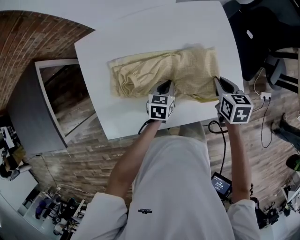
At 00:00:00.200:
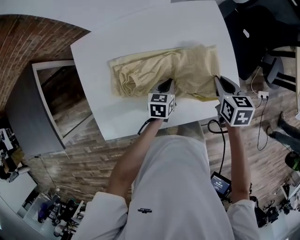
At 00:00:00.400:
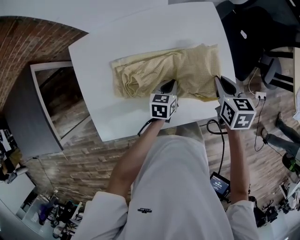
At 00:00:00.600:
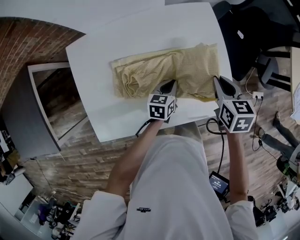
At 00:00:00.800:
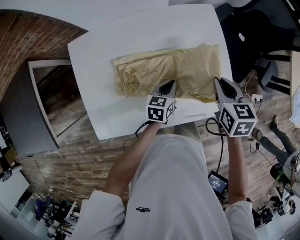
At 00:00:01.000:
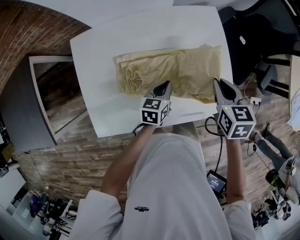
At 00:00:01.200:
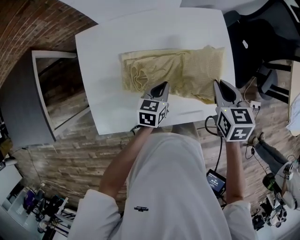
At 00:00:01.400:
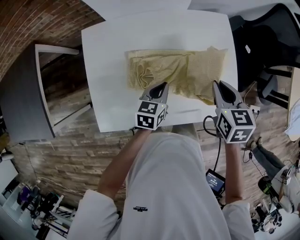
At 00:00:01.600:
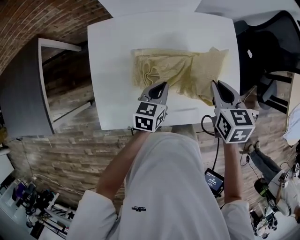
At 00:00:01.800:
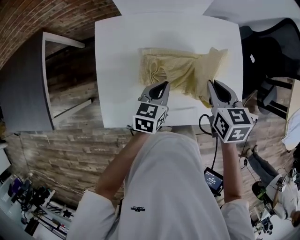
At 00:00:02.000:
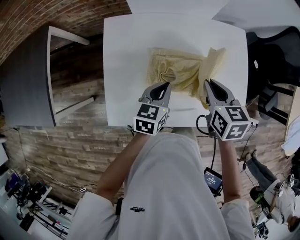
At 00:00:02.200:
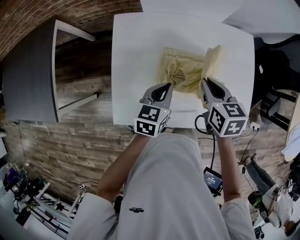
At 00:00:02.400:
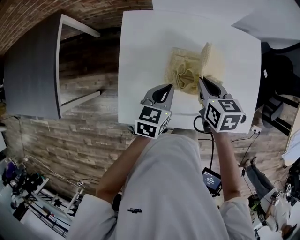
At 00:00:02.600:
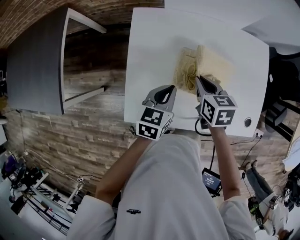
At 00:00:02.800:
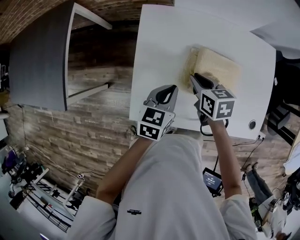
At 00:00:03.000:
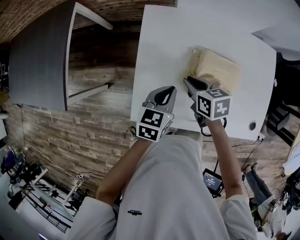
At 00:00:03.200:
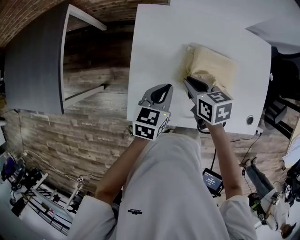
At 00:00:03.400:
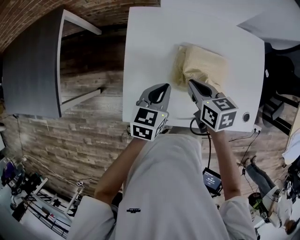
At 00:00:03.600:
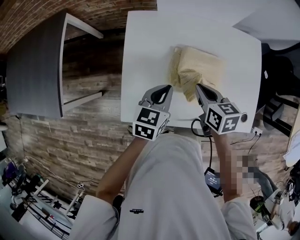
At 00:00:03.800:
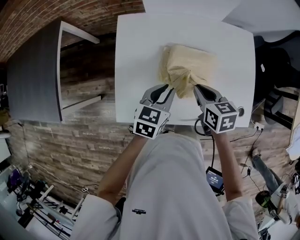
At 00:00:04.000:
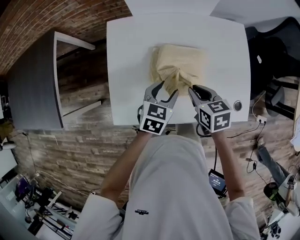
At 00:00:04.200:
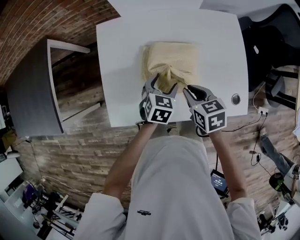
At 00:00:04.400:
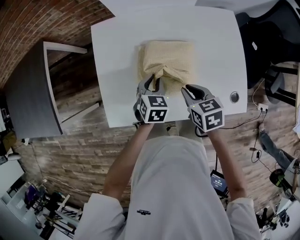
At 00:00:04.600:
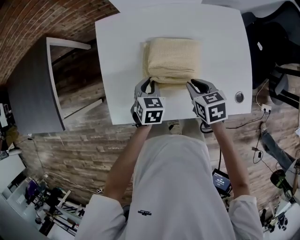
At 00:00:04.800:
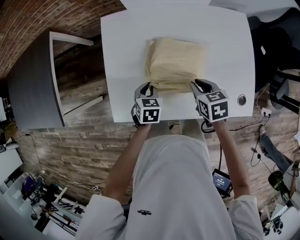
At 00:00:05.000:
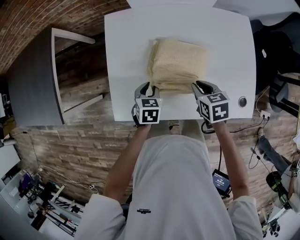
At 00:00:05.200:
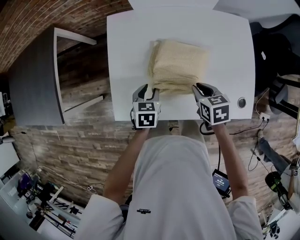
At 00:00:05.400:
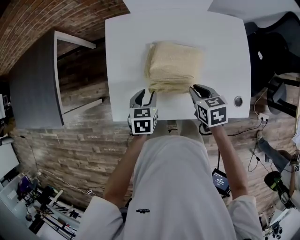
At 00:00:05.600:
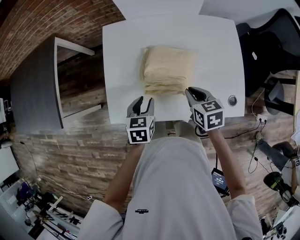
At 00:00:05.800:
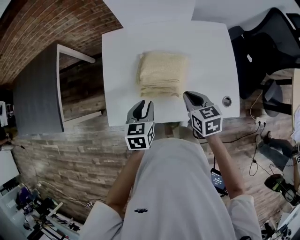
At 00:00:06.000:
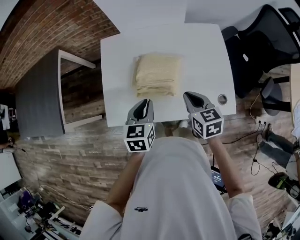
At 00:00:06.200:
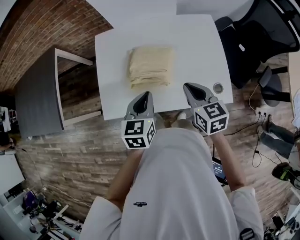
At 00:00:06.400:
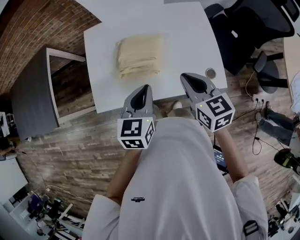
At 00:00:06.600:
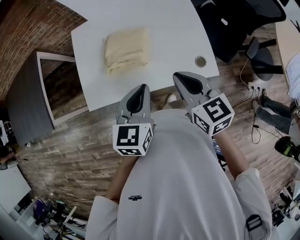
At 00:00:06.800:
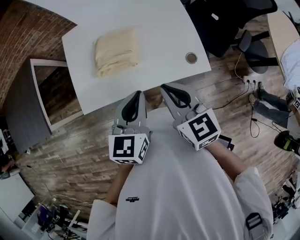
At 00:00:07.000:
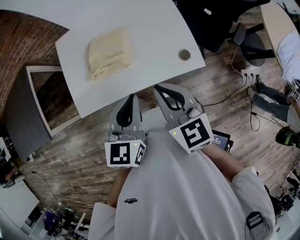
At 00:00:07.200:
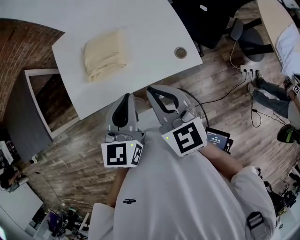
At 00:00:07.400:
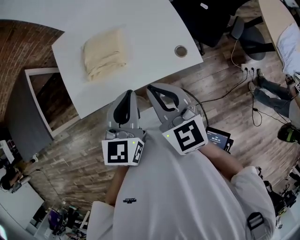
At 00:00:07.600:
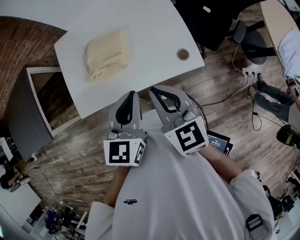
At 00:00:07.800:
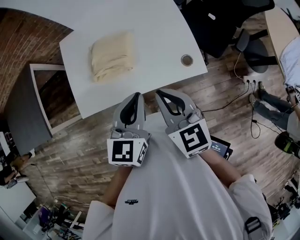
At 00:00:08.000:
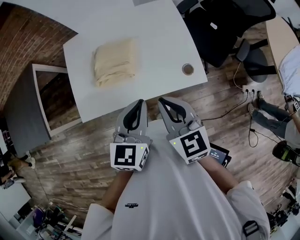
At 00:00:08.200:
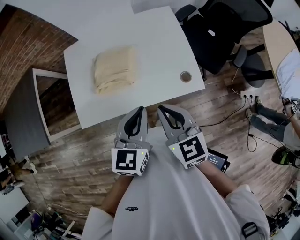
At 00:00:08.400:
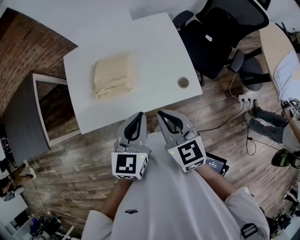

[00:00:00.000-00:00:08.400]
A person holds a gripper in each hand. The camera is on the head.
00:00:00.000 to 00:00:01.400: The left gripper is displaced upward by roughly 10 cm, and reaches about 5 cm to the right, then returns, while the right gripper goes approximately 10 cm upward and to the left.
00:00:01.400 to 00:00:02.800: The right gripper heads to the left, covering approximately 30 cm, and changes its angle by some 30 degrees. Meanwhile the left gripper shifts about 20 cm to the left.
00:00:02.800 to 00:00:04.200: The right gripper moves to the right and backward, roughly 15 cm. The left gripper goes about 15 cm to the right, swivels roughly 20 degrees, and opens its fingers.
00:00:04.200 to 00:00:05.600: The left gripper shifts some 10 cm to the left and backward, swivels about 20 degrees, and closes.
00:00:05.600 to 00:00:07.000: The left gripper is displaced upward, to the right and backward by about 30 cm, turns by approximately 30 degrees, and closes its fingers. Meanwhile the right gripper heads upward, backward and to the right, covering roughly 25 cm, and turns by approximately 30 degrees.
00:00:07.000 to 00:00:08.400: The grippers stay close to where they were, moving slightly.

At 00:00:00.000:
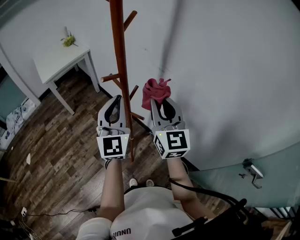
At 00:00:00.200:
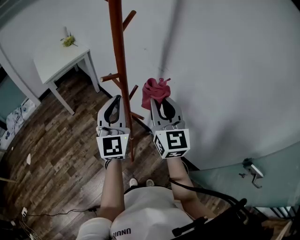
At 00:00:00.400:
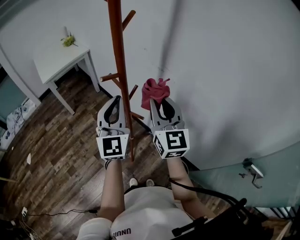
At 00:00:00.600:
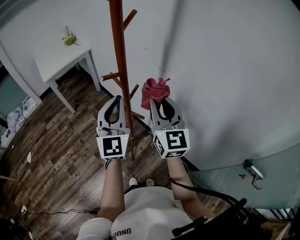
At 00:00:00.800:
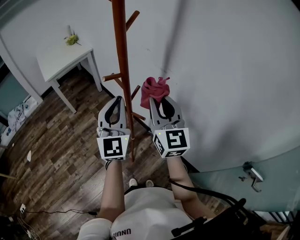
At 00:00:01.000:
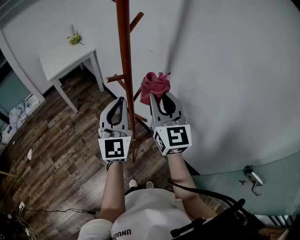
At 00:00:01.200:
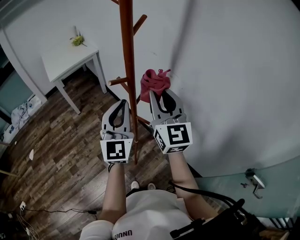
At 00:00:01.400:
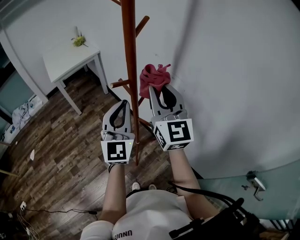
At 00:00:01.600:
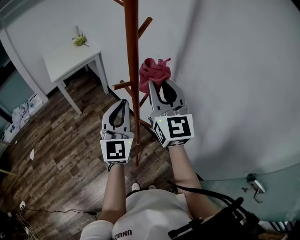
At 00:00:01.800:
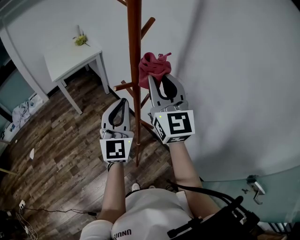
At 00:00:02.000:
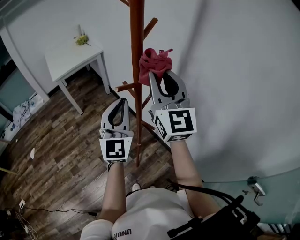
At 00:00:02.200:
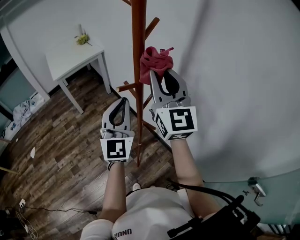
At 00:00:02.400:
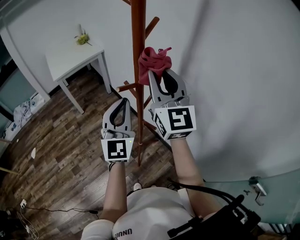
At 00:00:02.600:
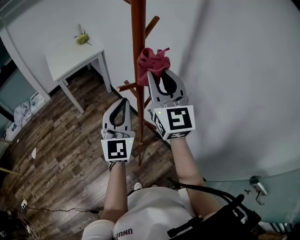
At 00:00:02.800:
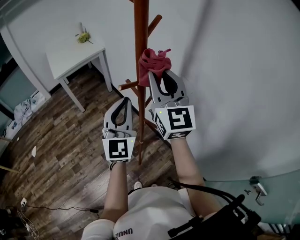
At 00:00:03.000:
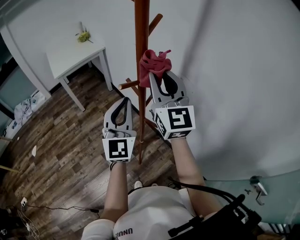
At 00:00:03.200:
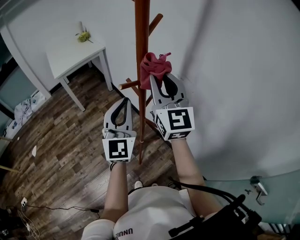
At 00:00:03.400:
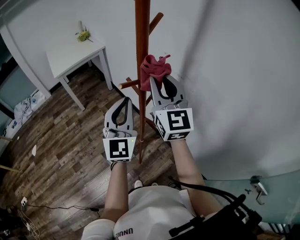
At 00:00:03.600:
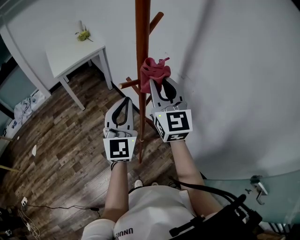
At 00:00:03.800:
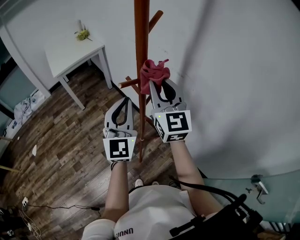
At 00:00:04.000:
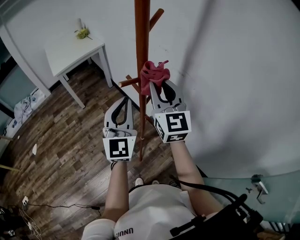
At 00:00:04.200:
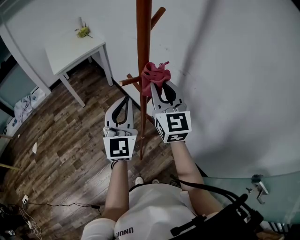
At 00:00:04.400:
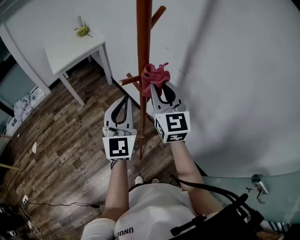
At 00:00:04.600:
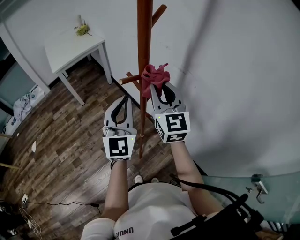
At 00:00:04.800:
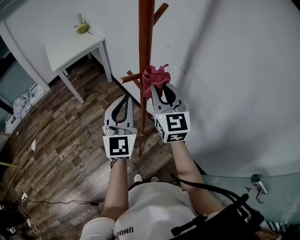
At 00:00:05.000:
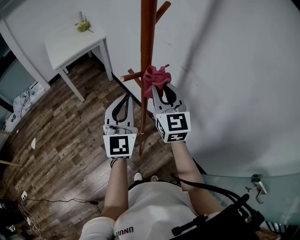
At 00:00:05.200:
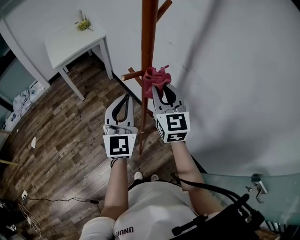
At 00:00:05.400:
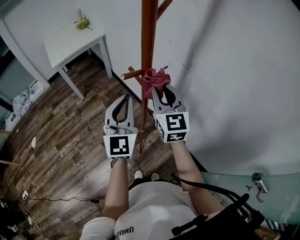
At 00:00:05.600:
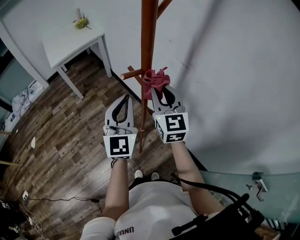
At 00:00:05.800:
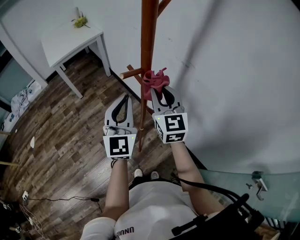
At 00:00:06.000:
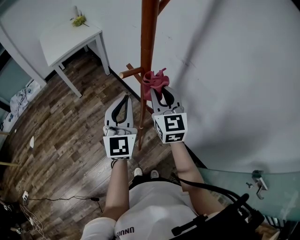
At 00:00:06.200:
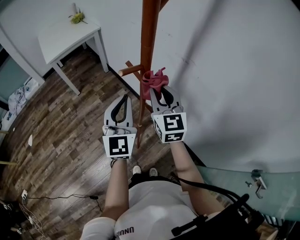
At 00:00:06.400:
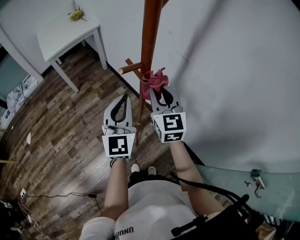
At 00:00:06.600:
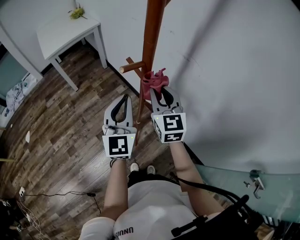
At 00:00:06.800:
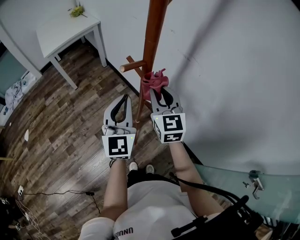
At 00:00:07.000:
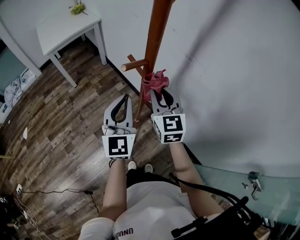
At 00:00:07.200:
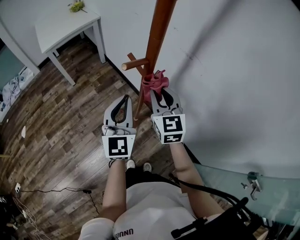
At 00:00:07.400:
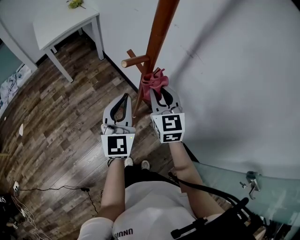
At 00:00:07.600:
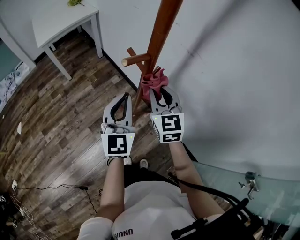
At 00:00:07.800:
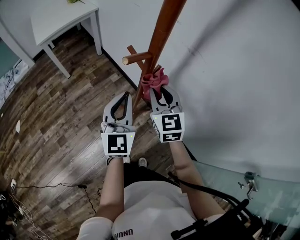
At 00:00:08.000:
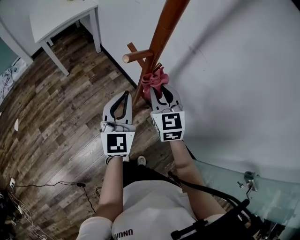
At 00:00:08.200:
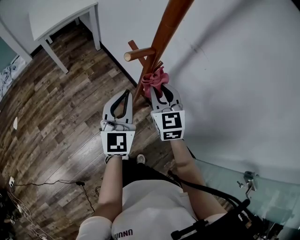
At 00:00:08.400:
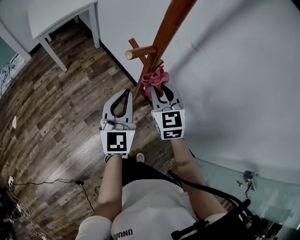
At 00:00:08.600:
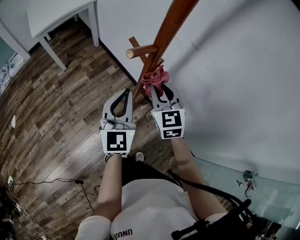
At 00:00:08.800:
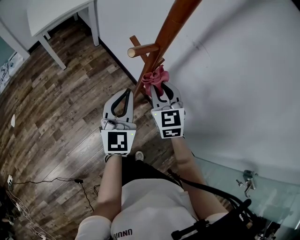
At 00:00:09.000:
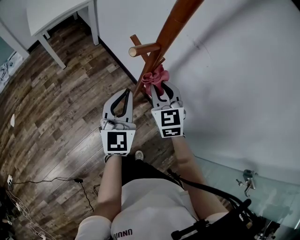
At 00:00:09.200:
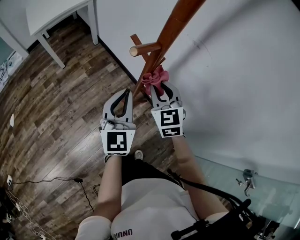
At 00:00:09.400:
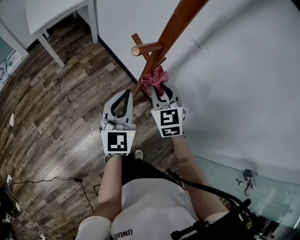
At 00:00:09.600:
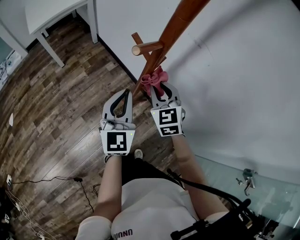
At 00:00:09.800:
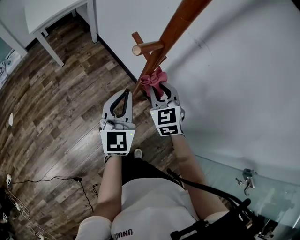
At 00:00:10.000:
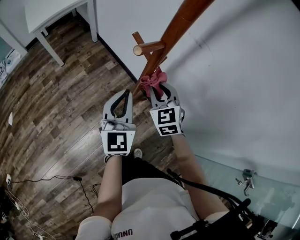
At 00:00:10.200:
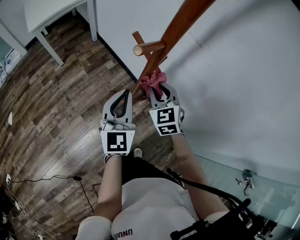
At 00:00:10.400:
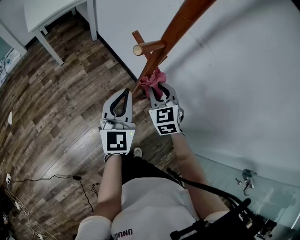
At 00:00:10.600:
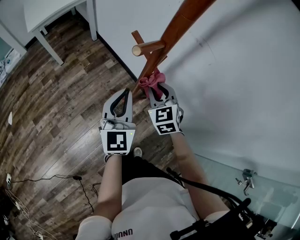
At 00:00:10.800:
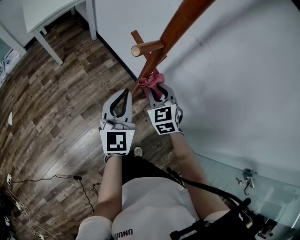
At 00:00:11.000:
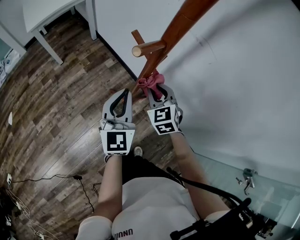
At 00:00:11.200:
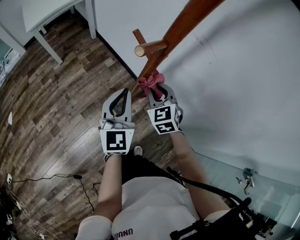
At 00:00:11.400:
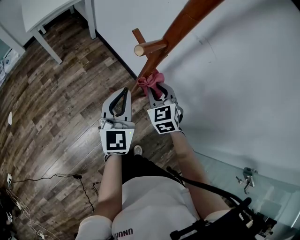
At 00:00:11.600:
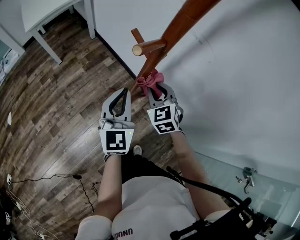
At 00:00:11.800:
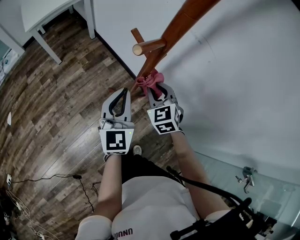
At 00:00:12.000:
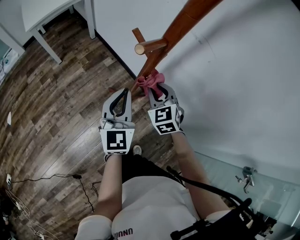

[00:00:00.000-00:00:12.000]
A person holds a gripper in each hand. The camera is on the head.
00:00:00.000 to 00:00:01.600: The right gripper moves upward and forward, about 10 cm.
00:00:01.600 to 00:00:03.000: The grippers stay close to where they were, moving slightly.
00:00:03.000 to 00:00:04.400: The right gripper shifts about 10 cm downward.
00:00:04.400 to 00:00:06.000: The right gripper shifts about 5 cm downward.
00:00:06.000 to 00:00:07.600: Both grippers move downward, roughly 5 cm.
00:00:07.600 to 00:00:09.000: The grippers move only a little.
00:00:09.000 to 00:00:10.400: The right gripper travels downward by some 5 cm.
00:00:10.400 to 00:00:12.000: The grippers move only a little.

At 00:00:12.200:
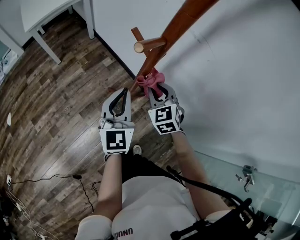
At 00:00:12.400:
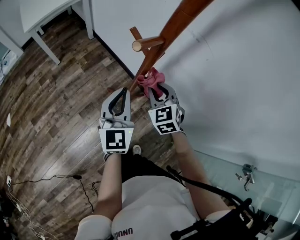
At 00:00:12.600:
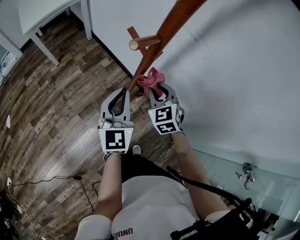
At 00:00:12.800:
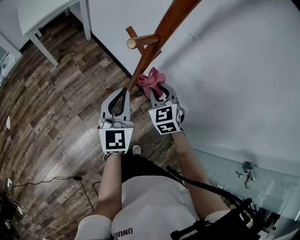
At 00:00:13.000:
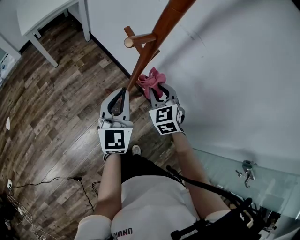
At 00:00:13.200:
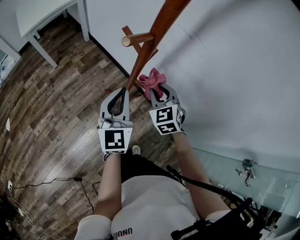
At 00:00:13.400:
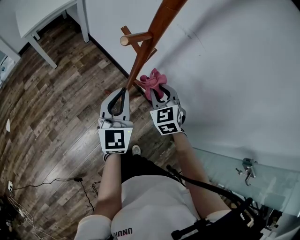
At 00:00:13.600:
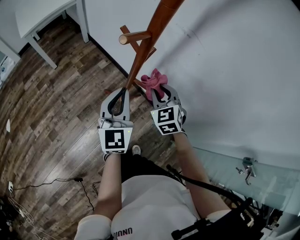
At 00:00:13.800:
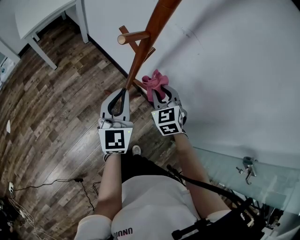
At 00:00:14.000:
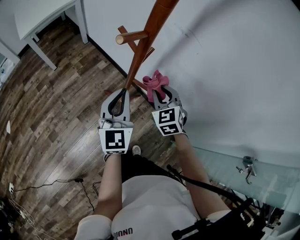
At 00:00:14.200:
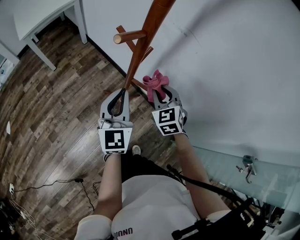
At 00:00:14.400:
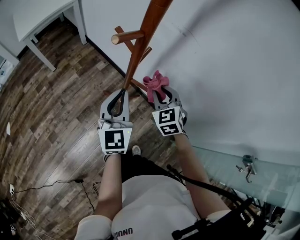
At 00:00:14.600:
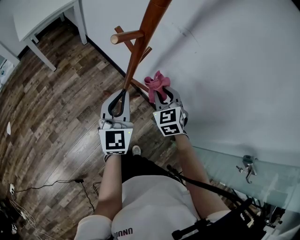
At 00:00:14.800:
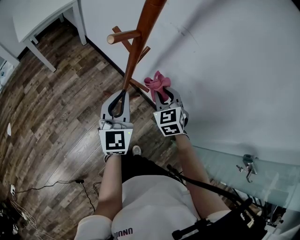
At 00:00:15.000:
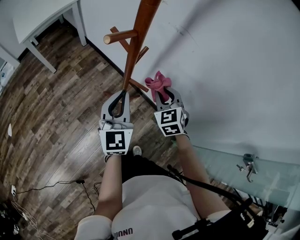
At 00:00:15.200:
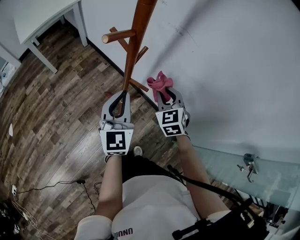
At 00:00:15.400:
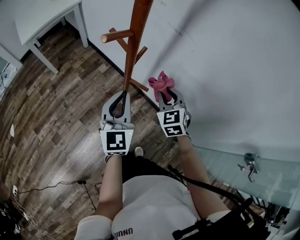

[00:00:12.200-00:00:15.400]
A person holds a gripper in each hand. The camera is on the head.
00:00:12.200 to 00:00:13.800: There are only small adjustments of the grippers.
00:00:13.800 to 00:00:15.400: The grippers move only a little.
